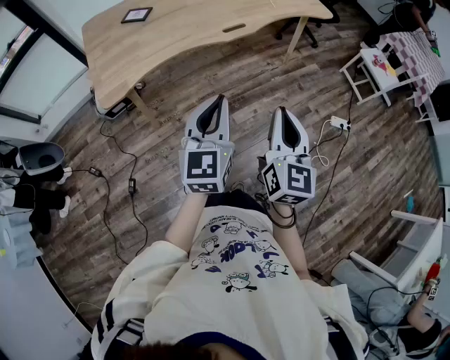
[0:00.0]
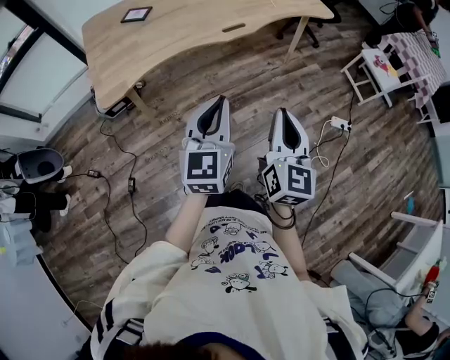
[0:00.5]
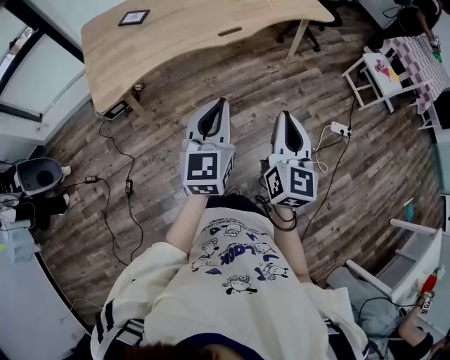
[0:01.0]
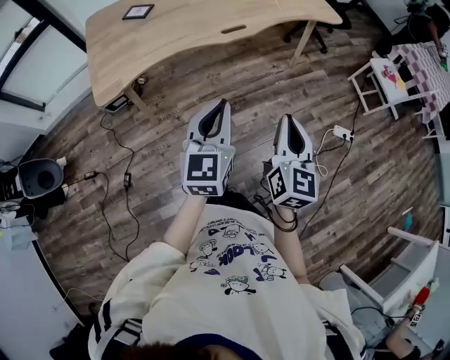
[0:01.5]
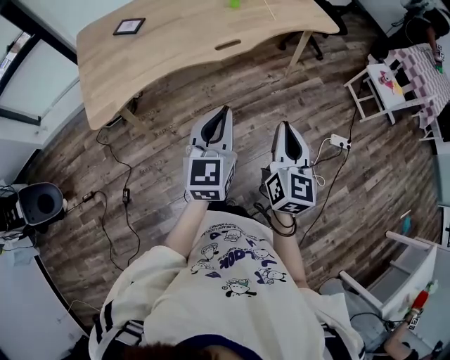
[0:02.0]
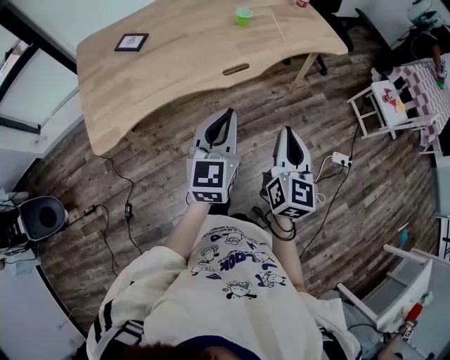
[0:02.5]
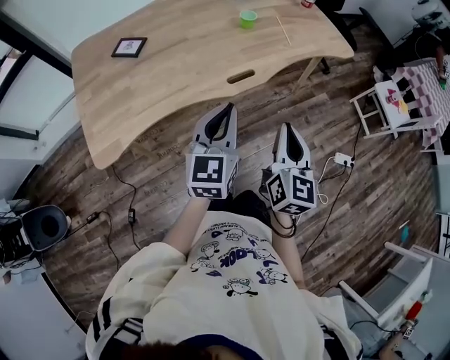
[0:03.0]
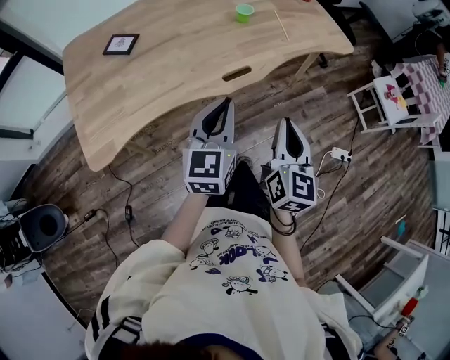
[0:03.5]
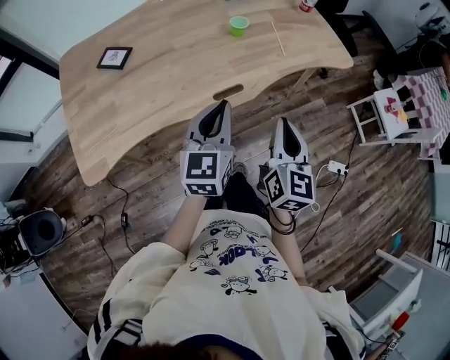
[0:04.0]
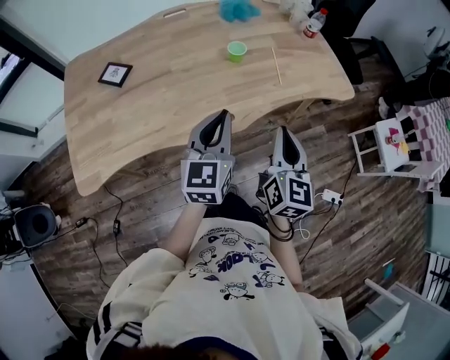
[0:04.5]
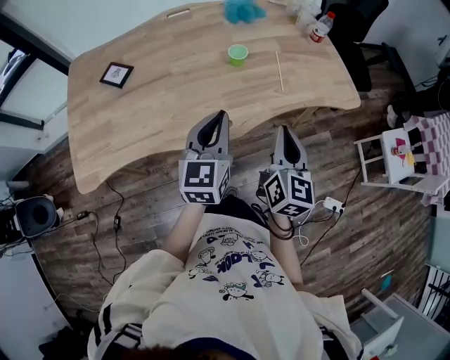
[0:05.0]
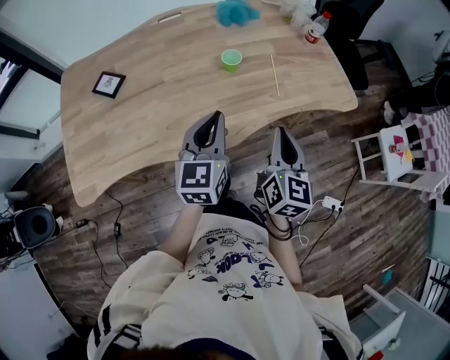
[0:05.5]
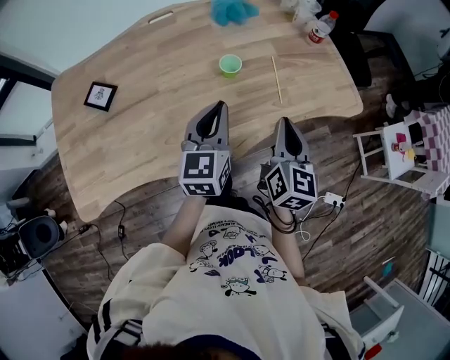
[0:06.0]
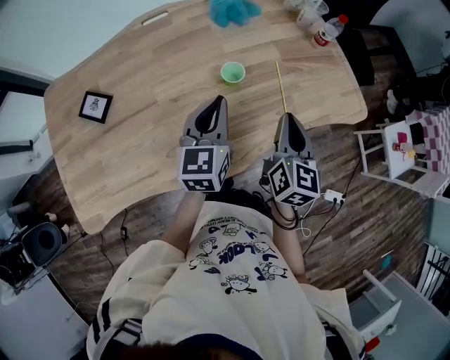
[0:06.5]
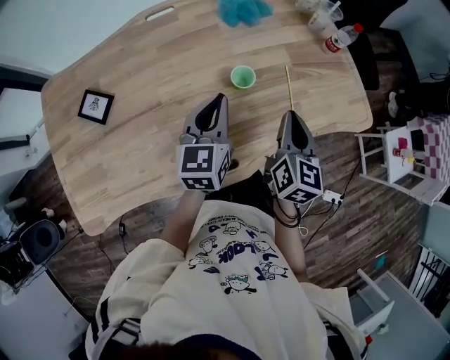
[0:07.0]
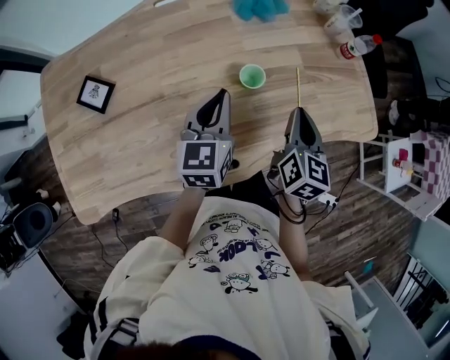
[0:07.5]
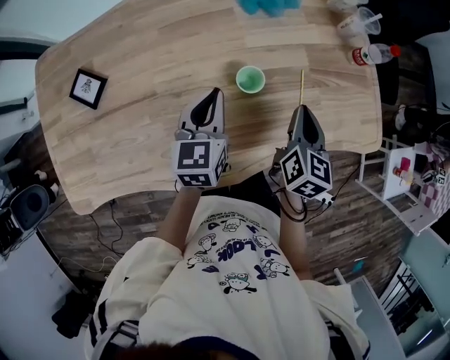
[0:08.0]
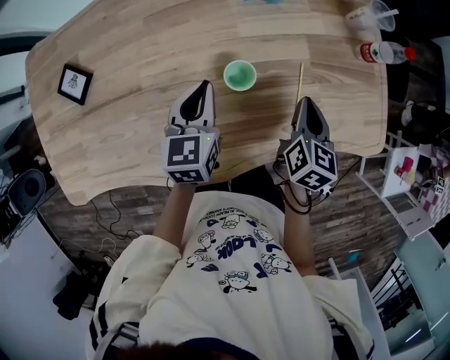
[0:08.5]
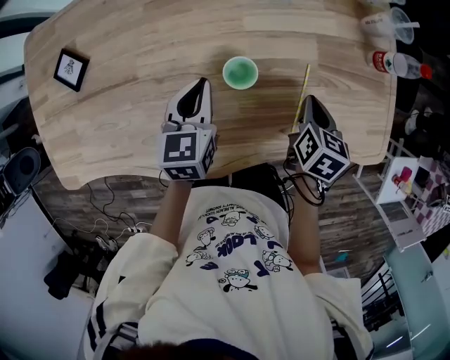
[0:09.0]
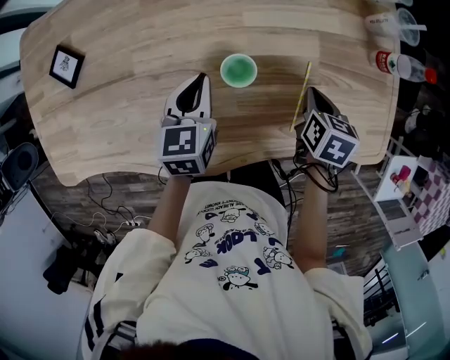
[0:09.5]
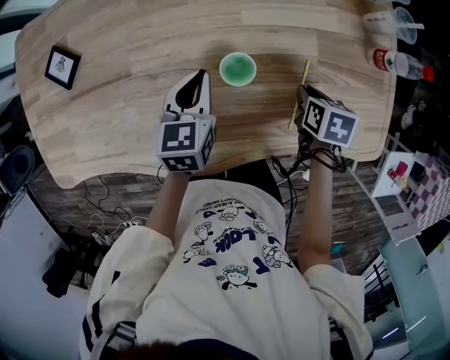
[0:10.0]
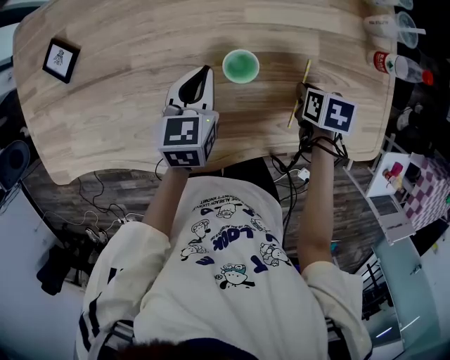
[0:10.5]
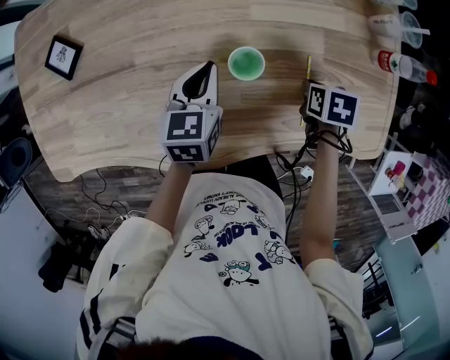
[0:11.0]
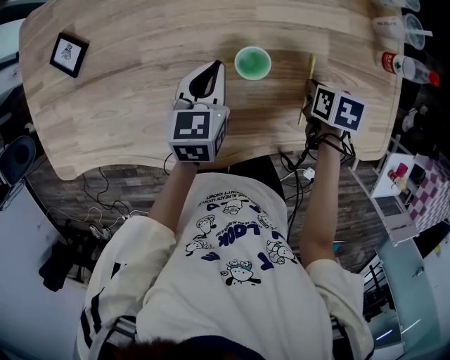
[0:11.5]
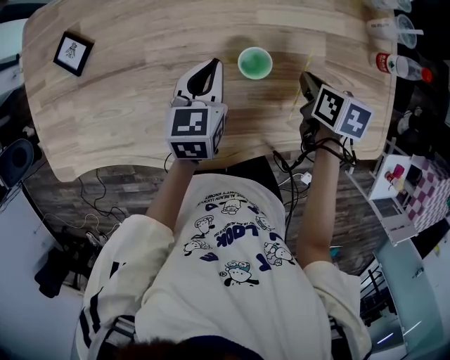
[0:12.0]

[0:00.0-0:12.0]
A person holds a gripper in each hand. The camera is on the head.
0:00.0 to 0:02.0: Both grippers move forward and to the right, roughly 10 cm.
0:02.0 to 0:04.0: Both grippers travel together forward, roughly 25 cm.
0:04.0 to 0:06.0: Both grippers travel together forward, approximately 20 cm.
0:06.0 to 0:08.0: The left gripper heads forward, downward and to the left, covering some 15 cm. The right gripper shifts about 20 cm forward and downward.
0:08.0 to 0:10.0: The left gripper goes some 5 cm downward. Meanwhile the right gripper moves downward, about 15 cm, and points its fingers about 40 degrees further downward.
0:10.0 to 0:12.0: The right gripper ends up about 10 cm from where it was.

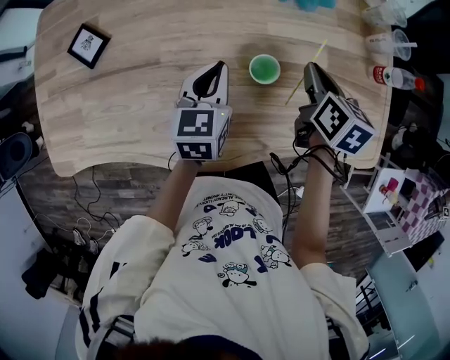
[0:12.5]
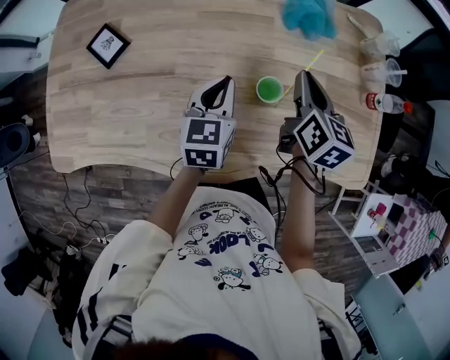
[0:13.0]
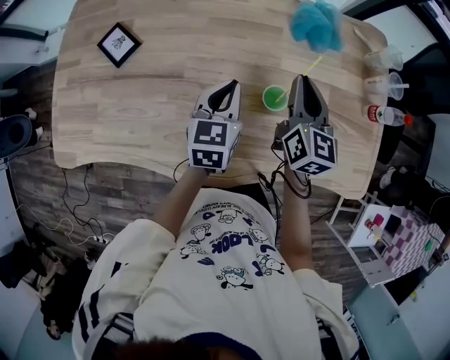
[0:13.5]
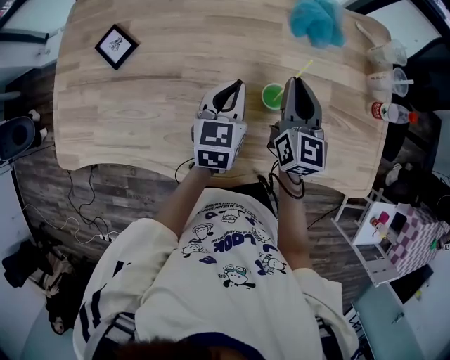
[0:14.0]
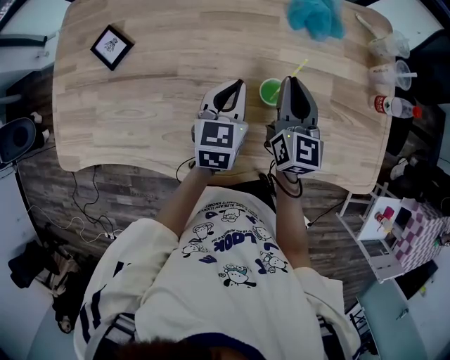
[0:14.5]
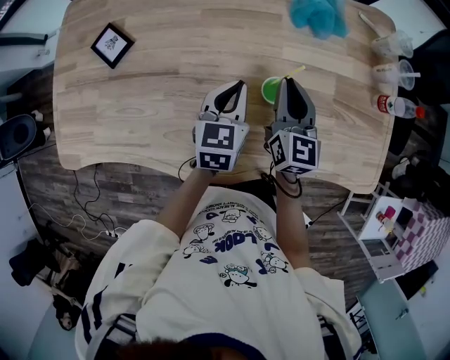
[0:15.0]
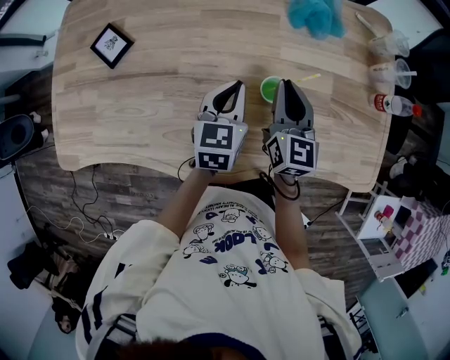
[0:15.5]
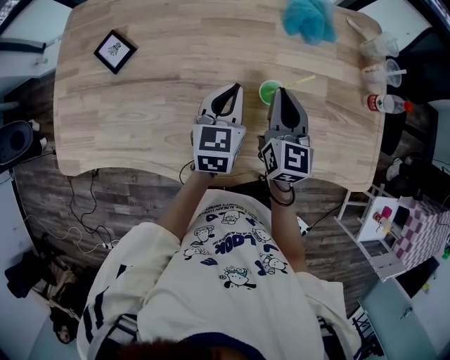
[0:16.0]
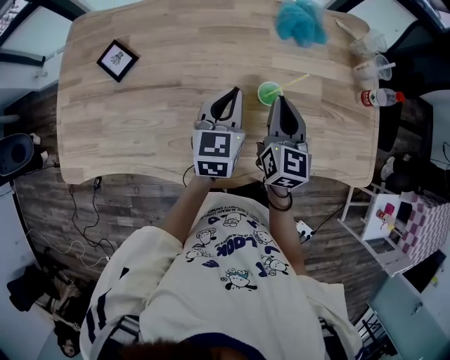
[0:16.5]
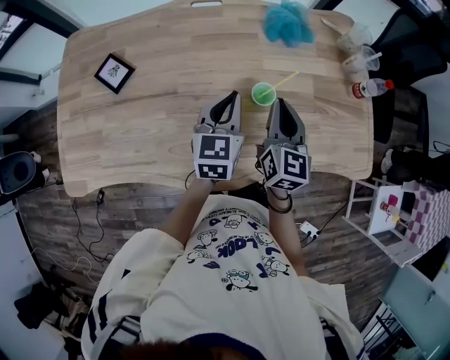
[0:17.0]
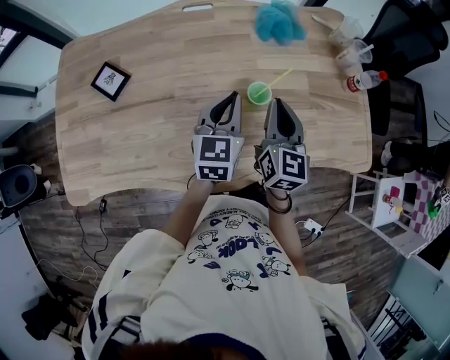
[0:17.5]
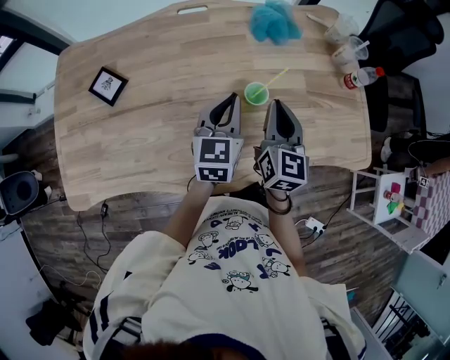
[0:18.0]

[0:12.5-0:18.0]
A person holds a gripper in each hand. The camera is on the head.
0:12.5 to 0:14.5: The right gripper moves to the left, roughly 5 cm, and changes its angle by roughly 30 degrees.
0:14.5 to 0:16.0: The grippers stay close to where they were, moving slightly.
0:16.0 to 0:18.0: The right gripper shifts by some 5 cm. Meanwhile the left gripper shifts by some 5 cm.

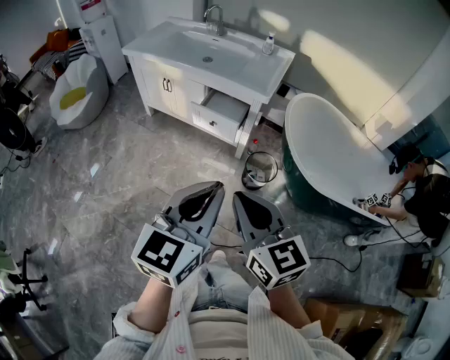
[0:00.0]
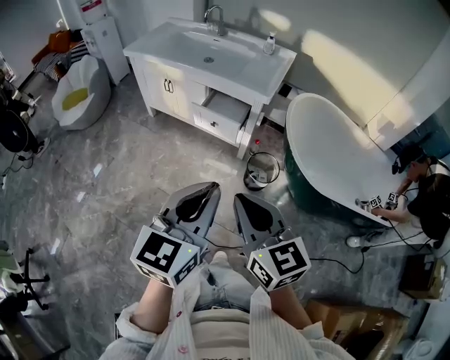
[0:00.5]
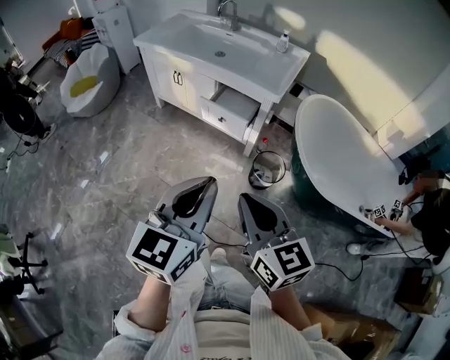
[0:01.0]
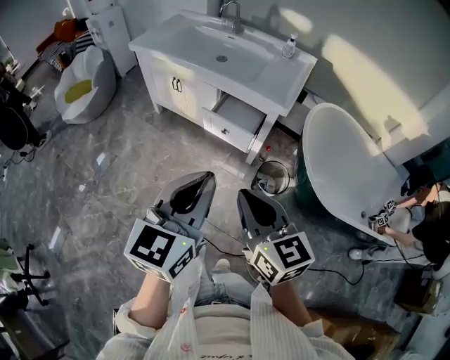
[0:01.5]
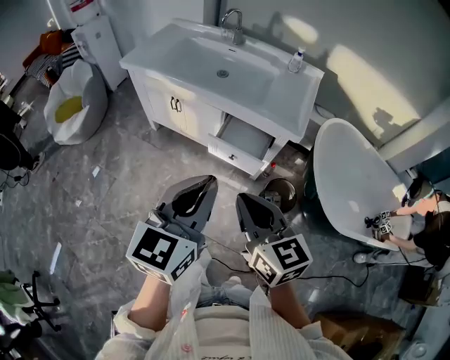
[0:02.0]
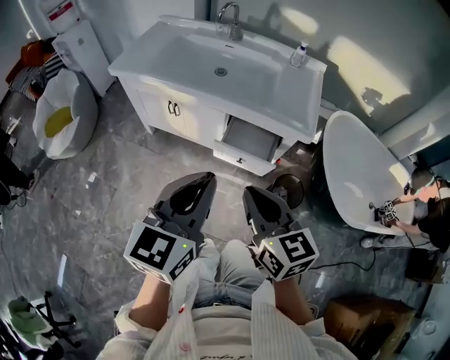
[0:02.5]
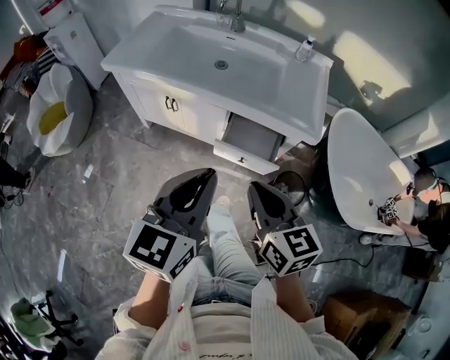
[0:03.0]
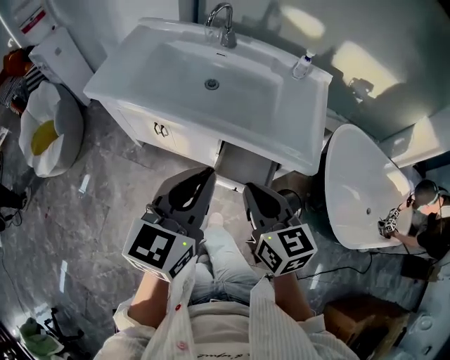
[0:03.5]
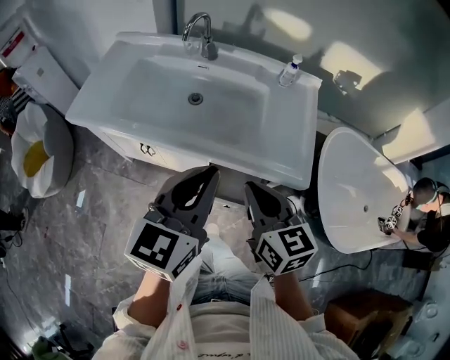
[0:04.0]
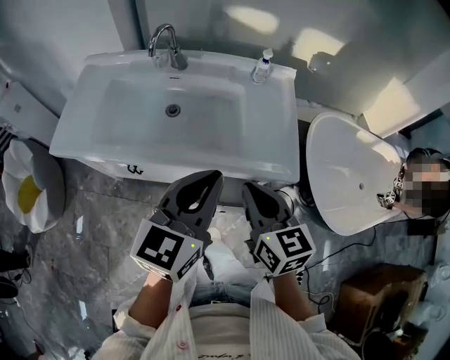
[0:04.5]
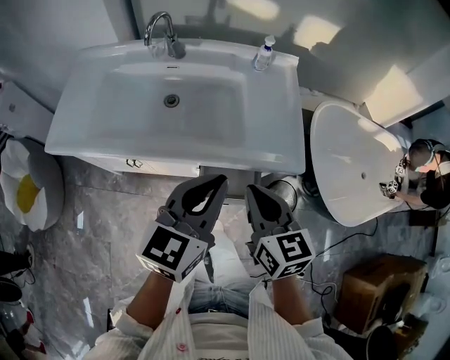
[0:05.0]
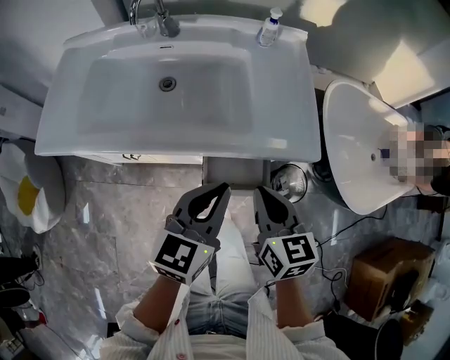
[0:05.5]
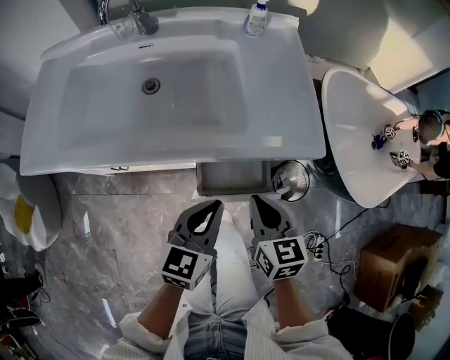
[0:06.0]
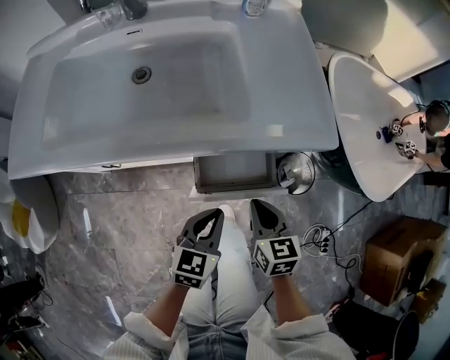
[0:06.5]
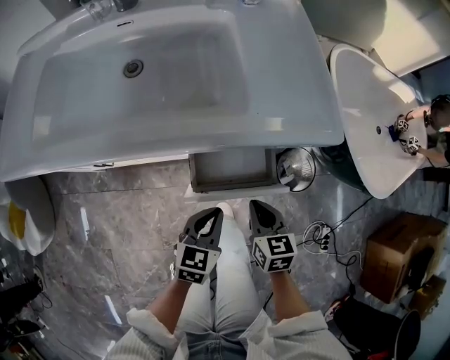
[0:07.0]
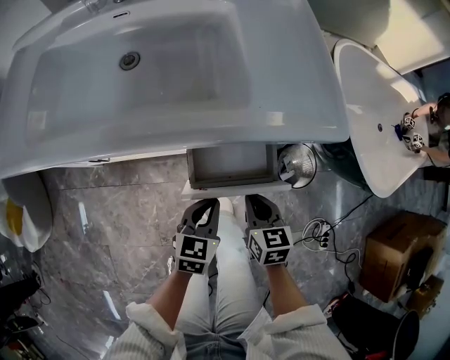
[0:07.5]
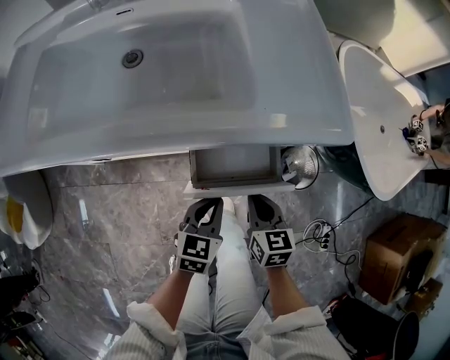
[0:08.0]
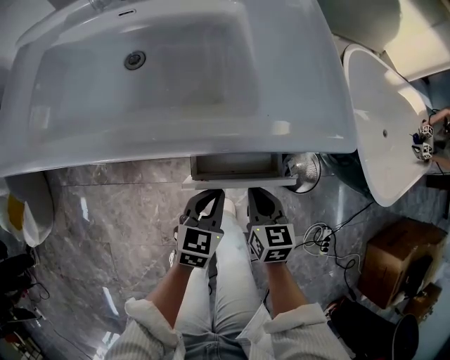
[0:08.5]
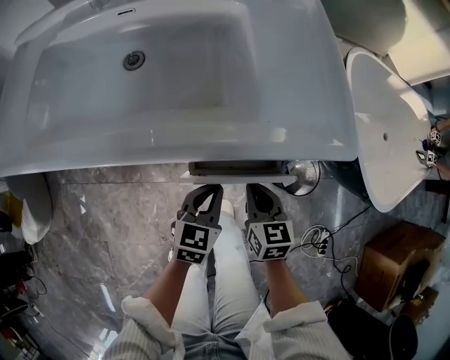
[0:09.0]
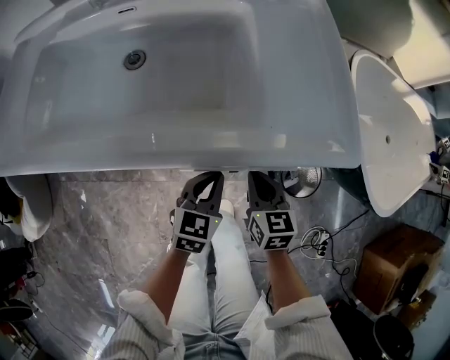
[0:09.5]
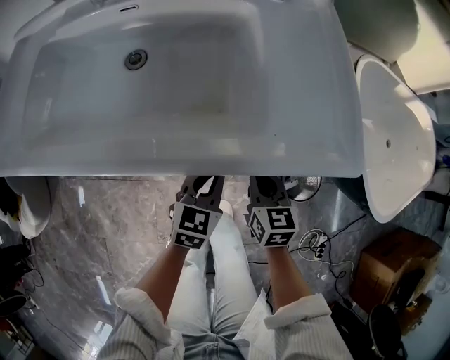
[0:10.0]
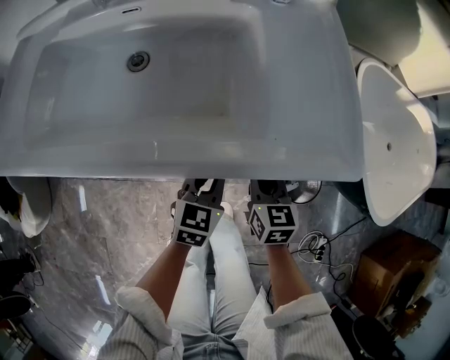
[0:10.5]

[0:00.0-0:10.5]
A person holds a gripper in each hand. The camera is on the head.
0:00.0 to 0:02.0: The right gripper is displaced forward by approximately 25 cm; the left gripper moves forward and to the left, some 30 cm.
0:02.0 to 0:04.0: The two grippers go approximately 30 cm forward.
0:04.0 to 0:06.5: Both grippers travel together downward, approximately 30 cm. The right gripper swivels approximately 30 degrees. The left gripper changes its angle by approximately 30 degrees.
0:06.5 to 0:08.5: The left gripper shifts about 10 cm downward and forward; the right gripper goes roughly 5 cm downward.
0:08.5 to 0:10.5: Both grippers travel together forward, approximately 10 cm.
